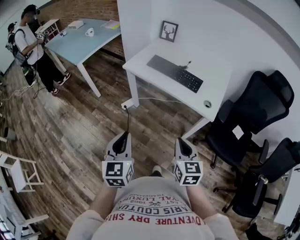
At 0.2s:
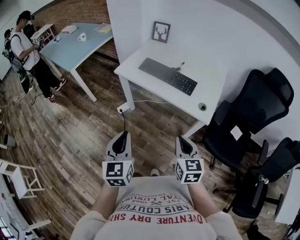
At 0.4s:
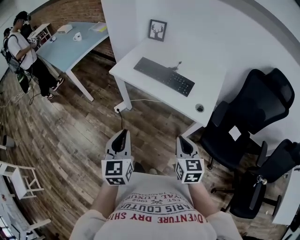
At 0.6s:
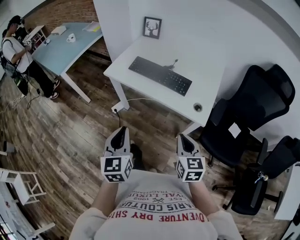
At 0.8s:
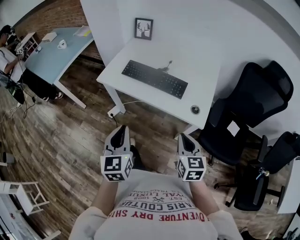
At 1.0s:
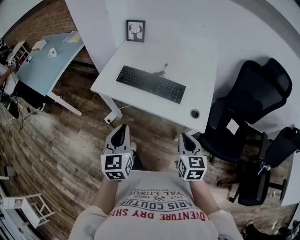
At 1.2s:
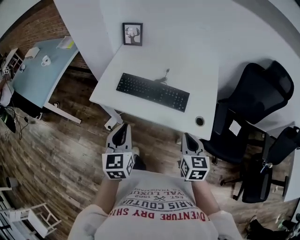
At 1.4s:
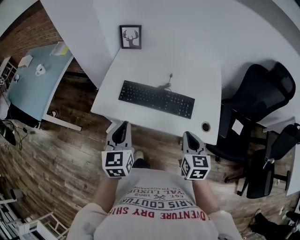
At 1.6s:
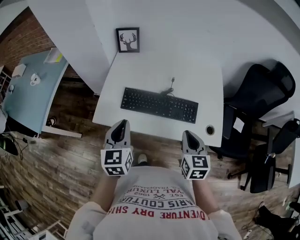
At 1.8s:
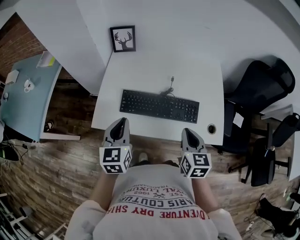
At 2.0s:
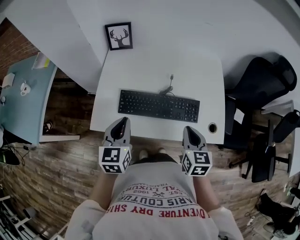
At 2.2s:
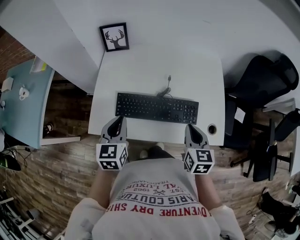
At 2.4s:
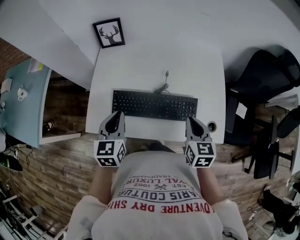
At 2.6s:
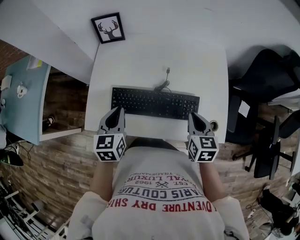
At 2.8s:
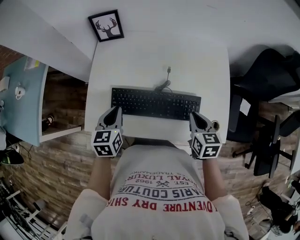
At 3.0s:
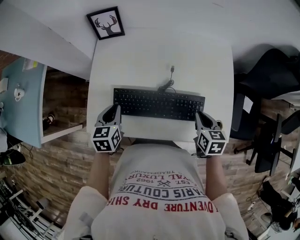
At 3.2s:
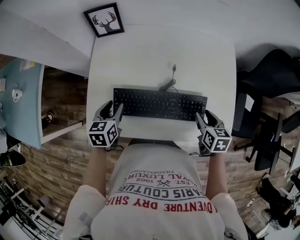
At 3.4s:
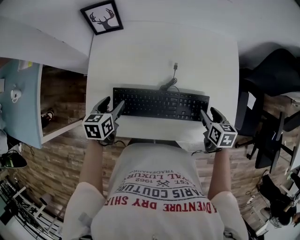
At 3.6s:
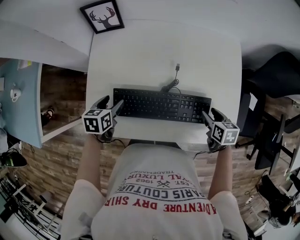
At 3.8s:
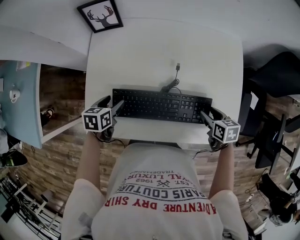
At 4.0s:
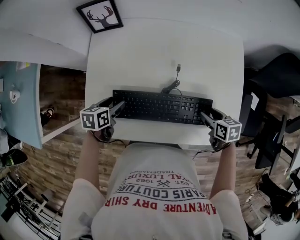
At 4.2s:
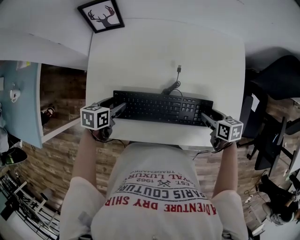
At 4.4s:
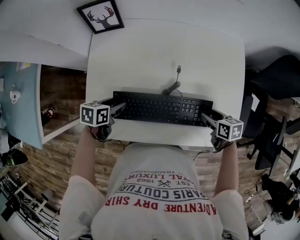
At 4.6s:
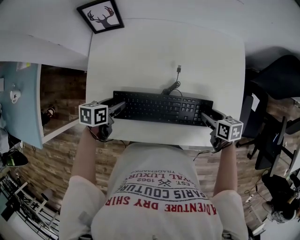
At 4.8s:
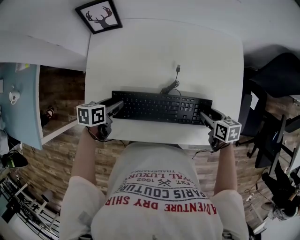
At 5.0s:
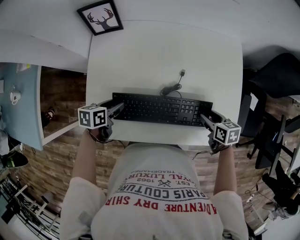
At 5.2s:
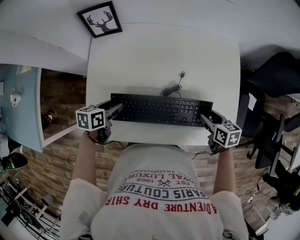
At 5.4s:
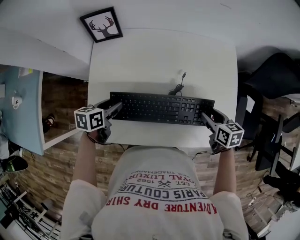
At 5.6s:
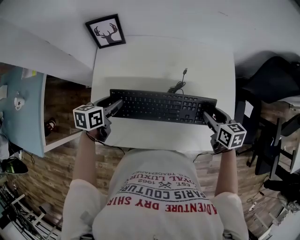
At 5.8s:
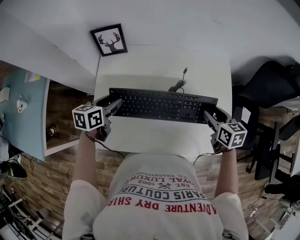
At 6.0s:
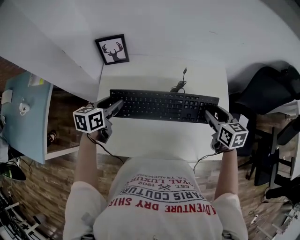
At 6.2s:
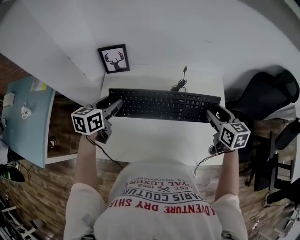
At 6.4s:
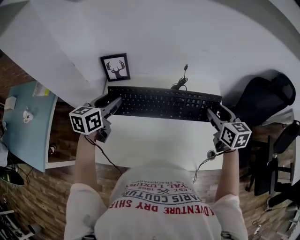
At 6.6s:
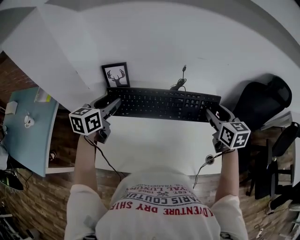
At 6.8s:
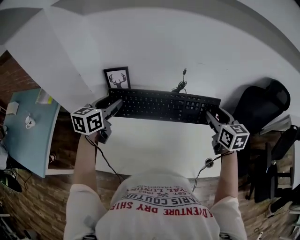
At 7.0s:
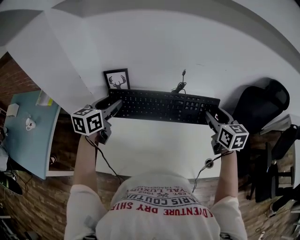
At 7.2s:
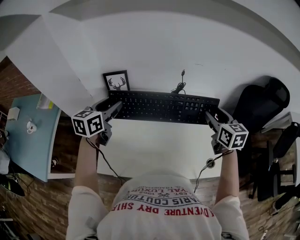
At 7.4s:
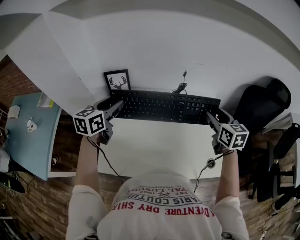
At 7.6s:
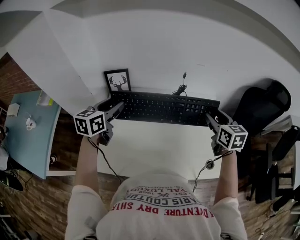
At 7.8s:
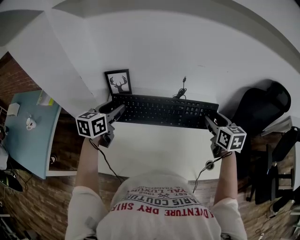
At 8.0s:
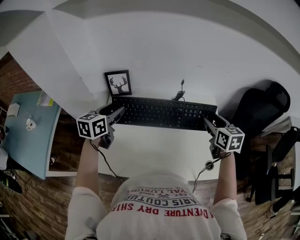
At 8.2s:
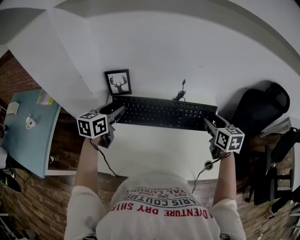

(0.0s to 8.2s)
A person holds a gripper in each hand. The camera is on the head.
0.0s - 1.6s: Both grippers move forward, some 40 cm. The right gripper turns by some 20 degrees. The left gripper rotates some 20 degrees.
1.6s - 3.2s: The right gripper moves forward, downward and to the right, some 20 cm, rotates approximately 30 degrees, and opens its fingers. Meanwhile the left gripper shifts about 25 cm forward and downward, swivels some 30 degrees, and opens.
3.2s - 5.0s: The two grippers go approximately 5 cm downward. The left gripper changes its angle by approximately 30 degrees.
5.0s - 6.6s: The right gripper goes up and down, about 15 cm each way, reversing 2 times, and changes its angle by about 40 degrees. Meanwhile the left gripper moves up and down over approximately 20 cm, changing direction 2 times, and tips its fingers upward by approximately 40 degrees.
6.6s - 8.2s: There are only small adjustments of the grippers.

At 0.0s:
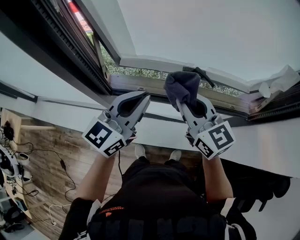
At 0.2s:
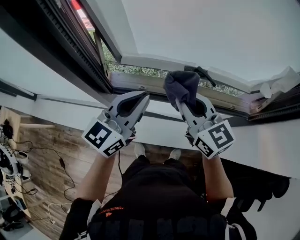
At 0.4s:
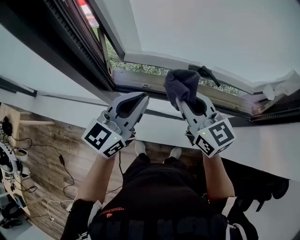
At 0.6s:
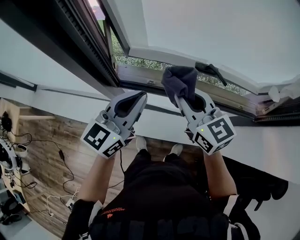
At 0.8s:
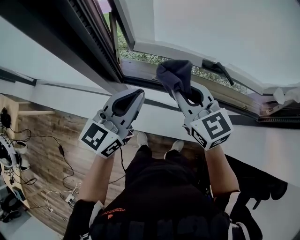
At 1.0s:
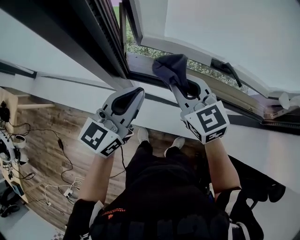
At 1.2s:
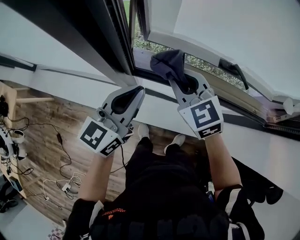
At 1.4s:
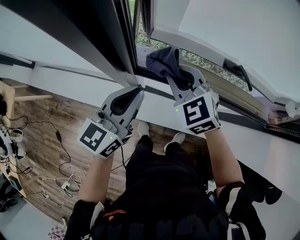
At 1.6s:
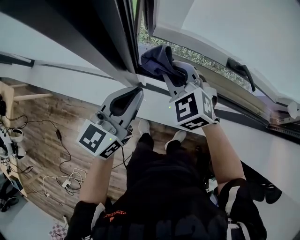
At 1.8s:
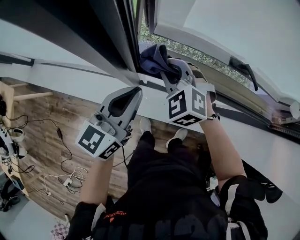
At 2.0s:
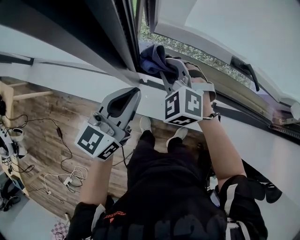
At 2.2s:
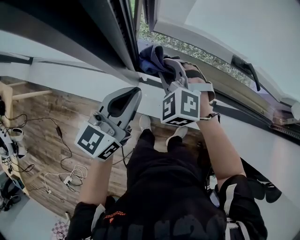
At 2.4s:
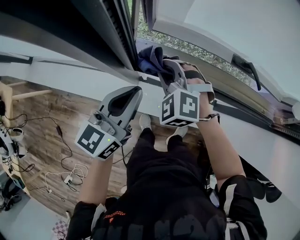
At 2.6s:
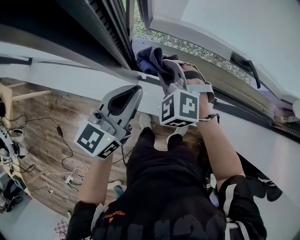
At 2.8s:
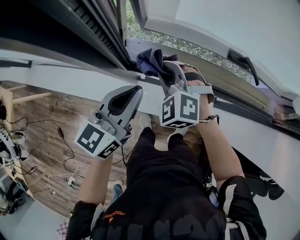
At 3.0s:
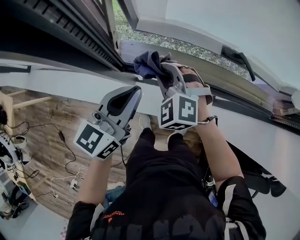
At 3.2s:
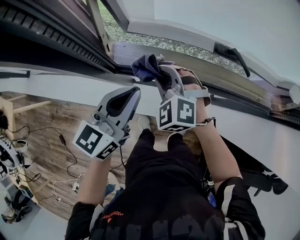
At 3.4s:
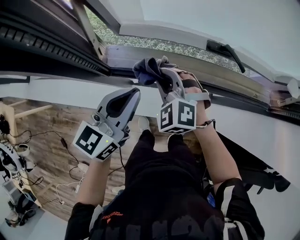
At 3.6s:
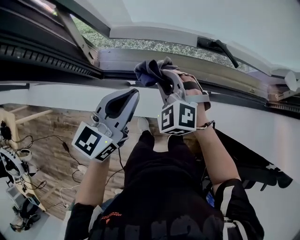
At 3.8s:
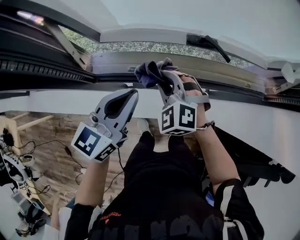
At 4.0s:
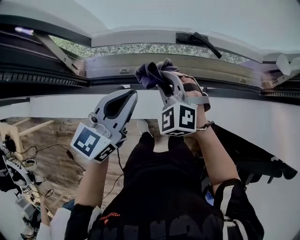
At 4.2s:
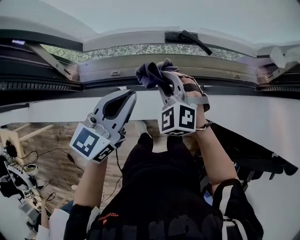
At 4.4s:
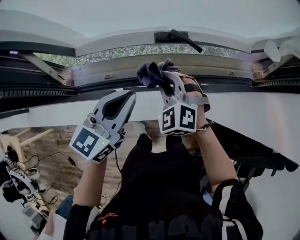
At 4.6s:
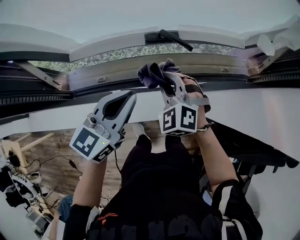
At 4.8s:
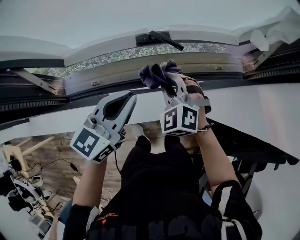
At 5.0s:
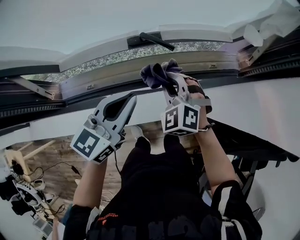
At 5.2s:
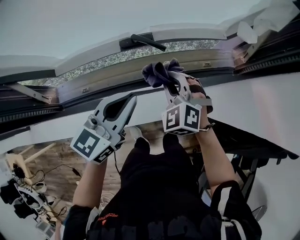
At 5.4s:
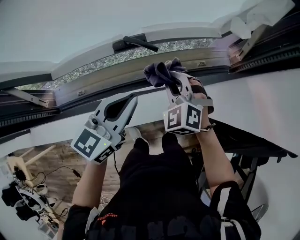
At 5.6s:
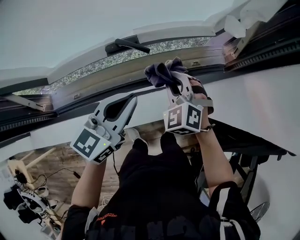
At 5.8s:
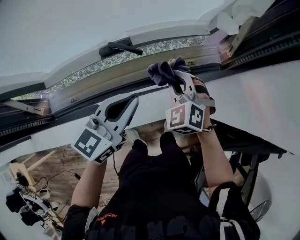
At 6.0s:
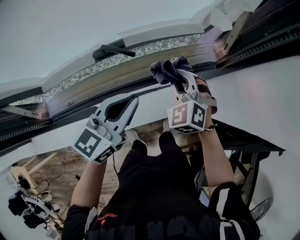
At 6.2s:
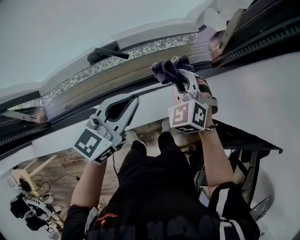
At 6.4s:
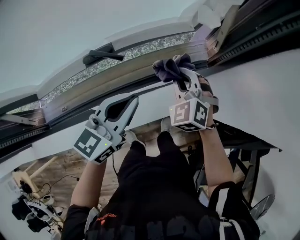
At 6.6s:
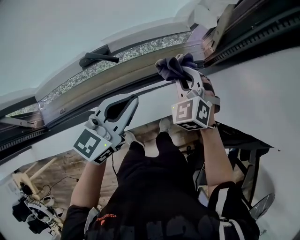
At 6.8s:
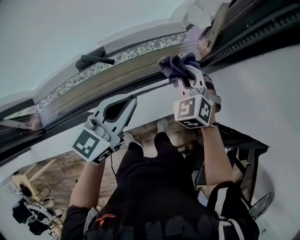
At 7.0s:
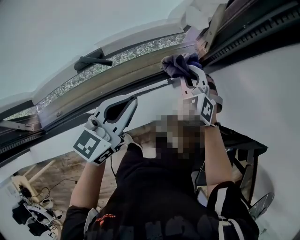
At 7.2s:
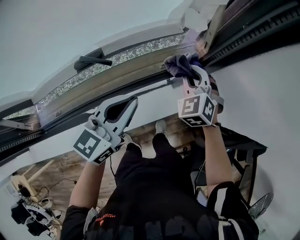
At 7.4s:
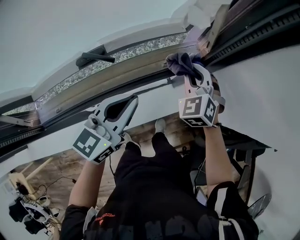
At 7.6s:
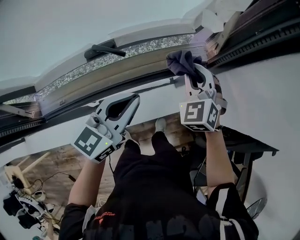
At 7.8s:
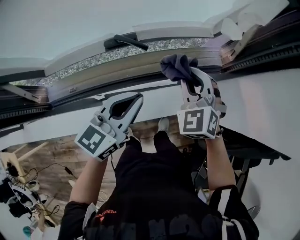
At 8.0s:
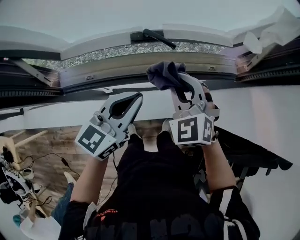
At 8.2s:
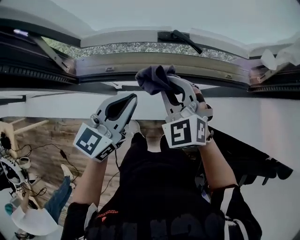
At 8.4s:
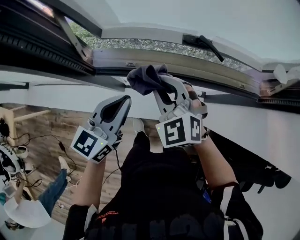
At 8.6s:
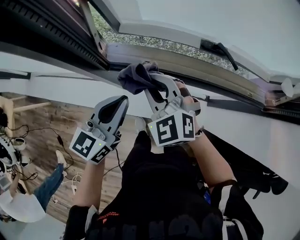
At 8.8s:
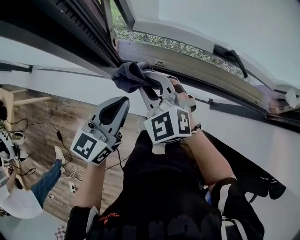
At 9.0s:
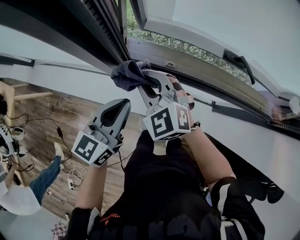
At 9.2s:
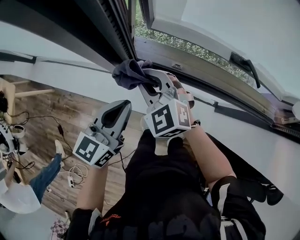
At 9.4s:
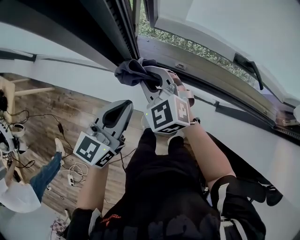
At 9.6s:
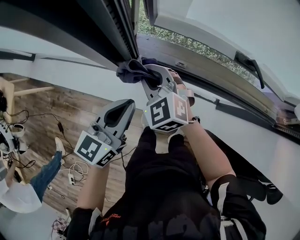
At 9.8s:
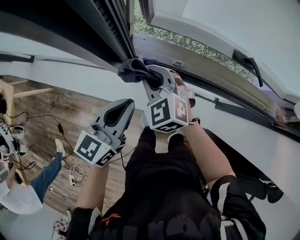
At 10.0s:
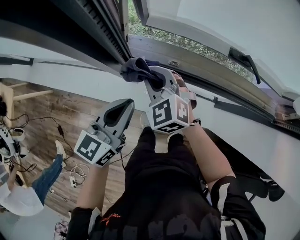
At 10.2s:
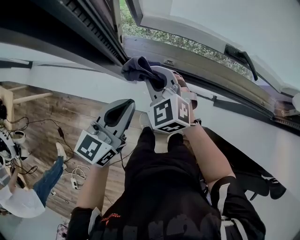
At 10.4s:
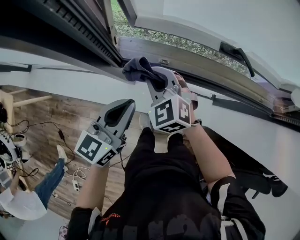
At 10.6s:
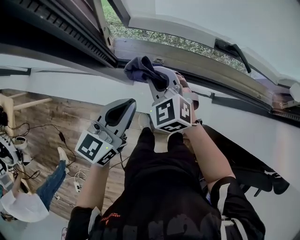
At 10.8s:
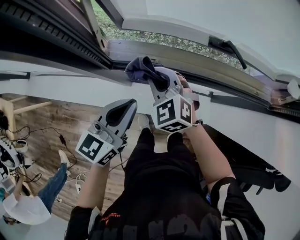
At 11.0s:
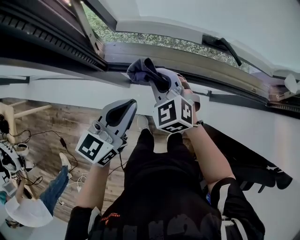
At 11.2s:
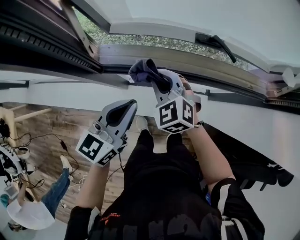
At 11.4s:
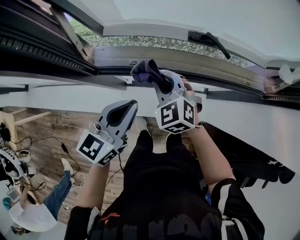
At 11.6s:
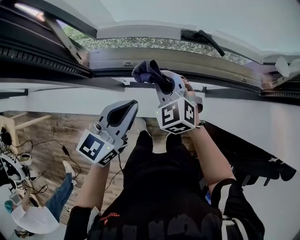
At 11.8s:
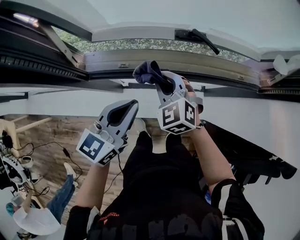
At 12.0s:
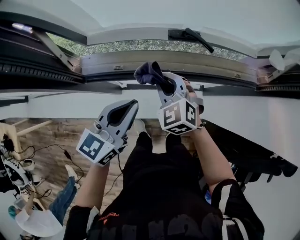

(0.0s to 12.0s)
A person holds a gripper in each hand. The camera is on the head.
0.0s - 1.6s: The left gripper heads to the left and downward, covering about 20 cm, while the right gripper is displaced to the left, downward and forward by roughly 25 cm, and turns by approximately 50 degrees.
1.6s - 3.0s: The right gripper shifts approximately 5 cm downward.
3.0s - 4.4s: The grippers both shift to the right by some 20 cm.
4.4s - 6.0s: The two grippers go approximately 20 cm to the right. The right gripper turns by about 20 degrees.
6.0s - 7.6s: The right gripper goes roughly 5 cm to the right.
7.6s - 9.0s: The pair of grippers is taken approximately 50 cm. The left gripper swivels about 40 degrees. The right gripper rotates roughly 60 degrees.
9.0s - 10.4s: The right gripper ends up roughly 5 cm from where it was.
10.4s - 12.0s: Both grippers move to the right, approximately 20 cm.

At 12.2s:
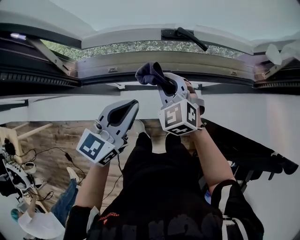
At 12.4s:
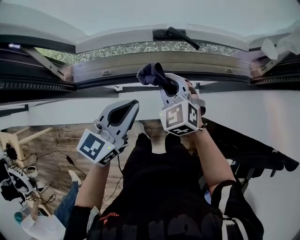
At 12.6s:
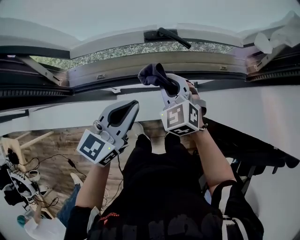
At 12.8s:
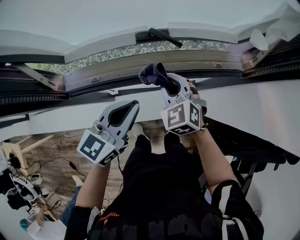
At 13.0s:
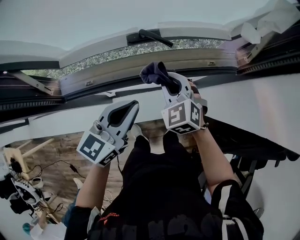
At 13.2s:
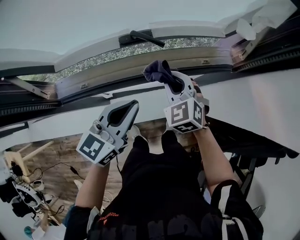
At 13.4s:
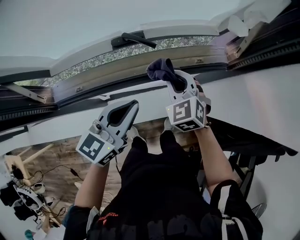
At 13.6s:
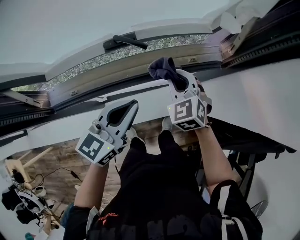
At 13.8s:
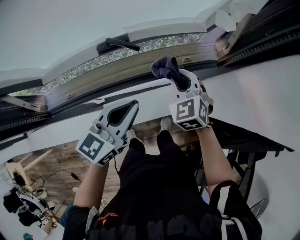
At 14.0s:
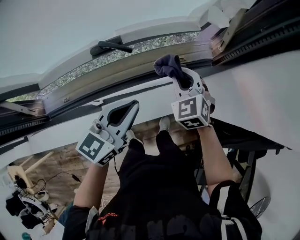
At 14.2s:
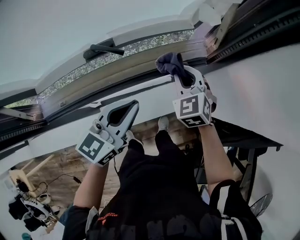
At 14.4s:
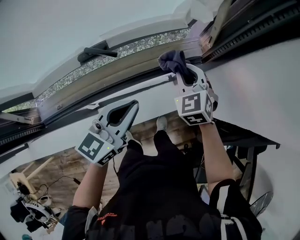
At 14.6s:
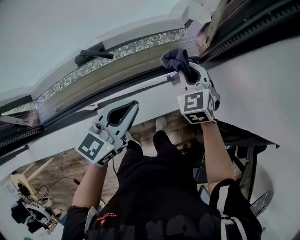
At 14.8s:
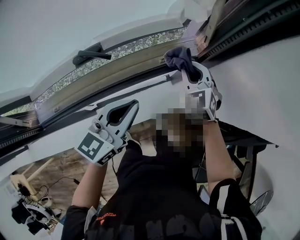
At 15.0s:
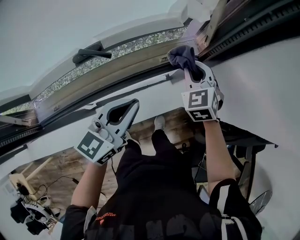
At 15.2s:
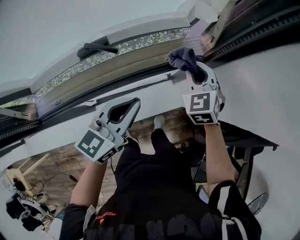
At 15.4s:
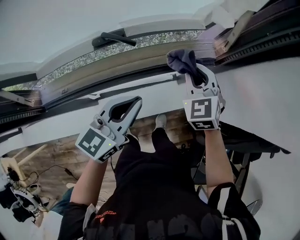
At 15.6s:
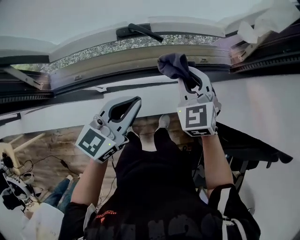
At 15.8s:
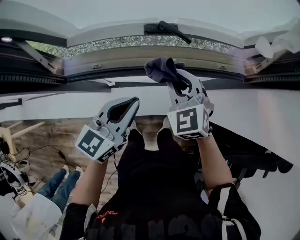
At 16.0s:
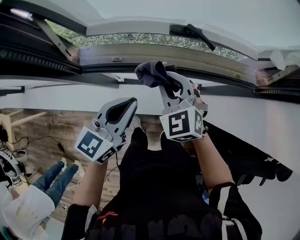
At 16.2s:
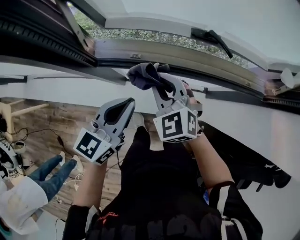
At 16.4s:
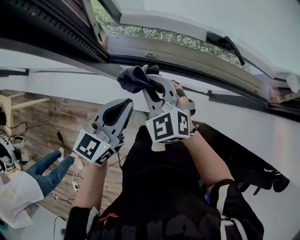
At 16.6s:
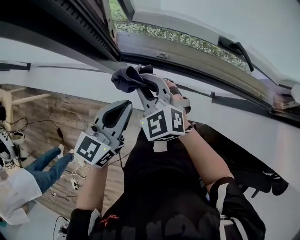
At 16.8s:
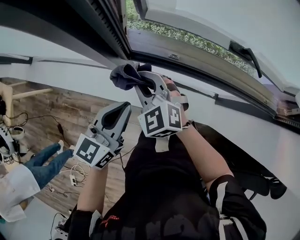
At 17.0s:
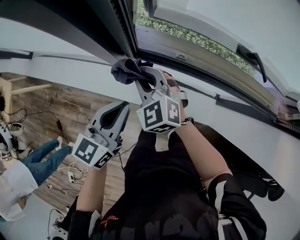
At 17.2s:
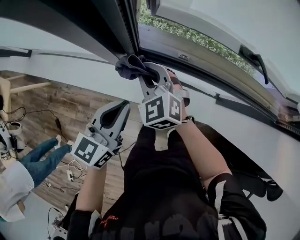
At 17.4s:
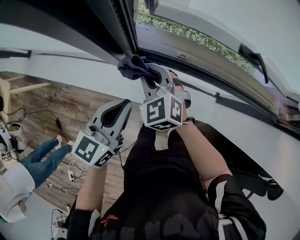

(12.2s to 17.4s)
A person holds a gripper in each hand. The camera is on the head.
12.2s - 14.0s: The left gripper is displaced to the right and forward by approximately 20 cm. The right gripper goes about 30 cm to the right, and rotates some 20 degrees.
14.0s - 15.6s: Both grippers travel together to the left, about 5 cm.
15.6s - 17.4s: The right gripper changes place by some 50 cm, and changes its angle by some 30 degrees. Meanwhile the left gripper shifts by about 40 cm, and changes its angle by approximately 30 degrees.
